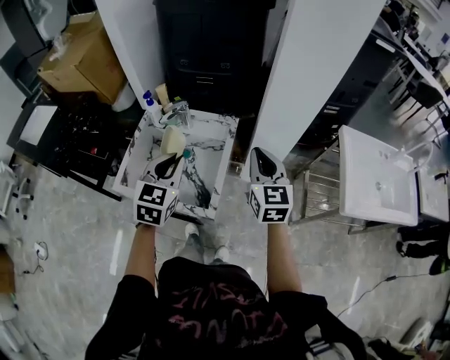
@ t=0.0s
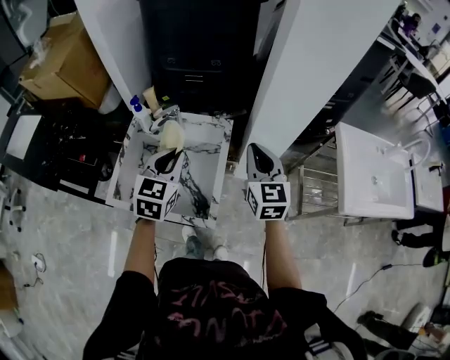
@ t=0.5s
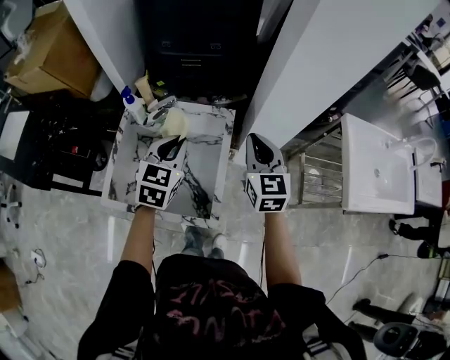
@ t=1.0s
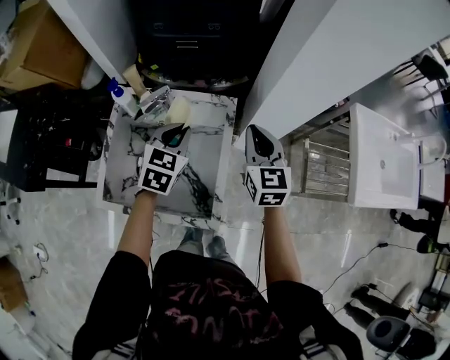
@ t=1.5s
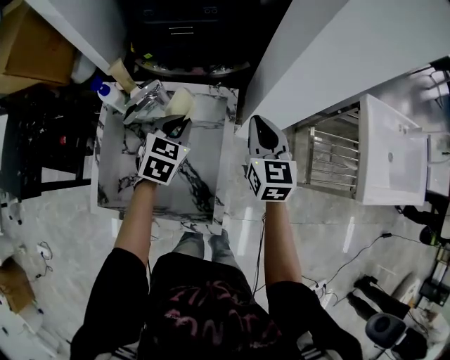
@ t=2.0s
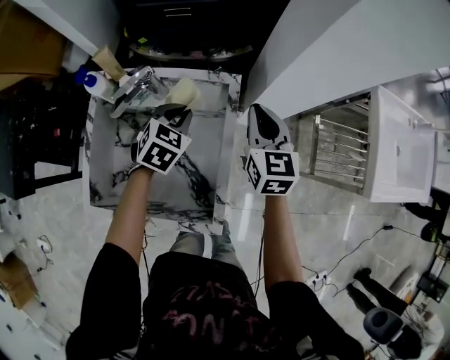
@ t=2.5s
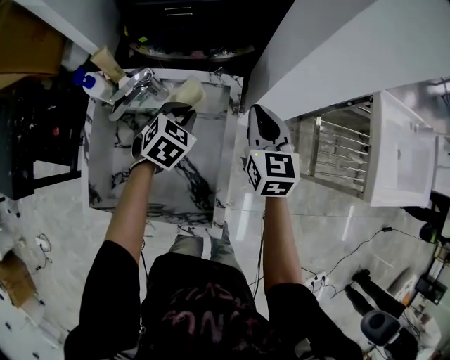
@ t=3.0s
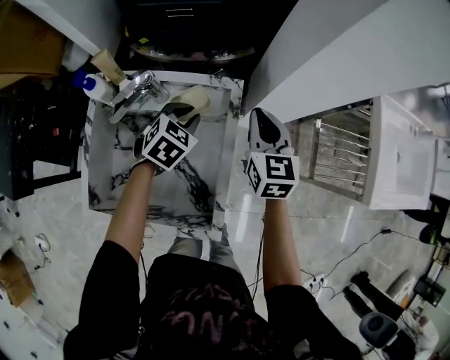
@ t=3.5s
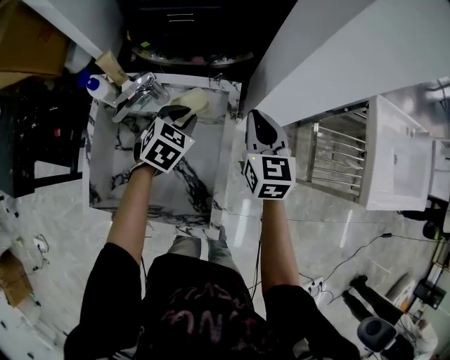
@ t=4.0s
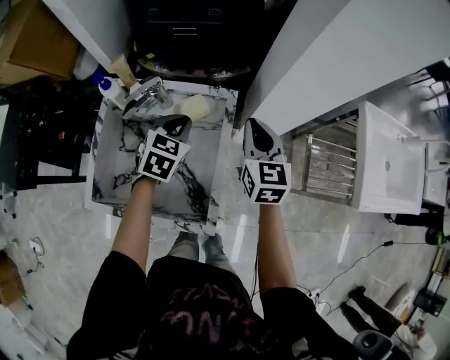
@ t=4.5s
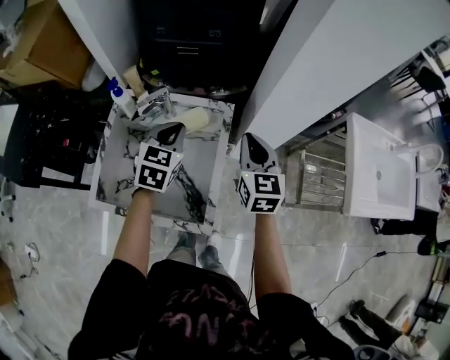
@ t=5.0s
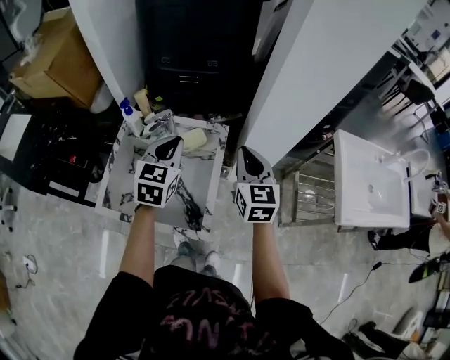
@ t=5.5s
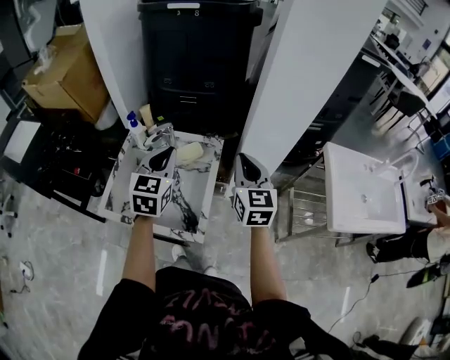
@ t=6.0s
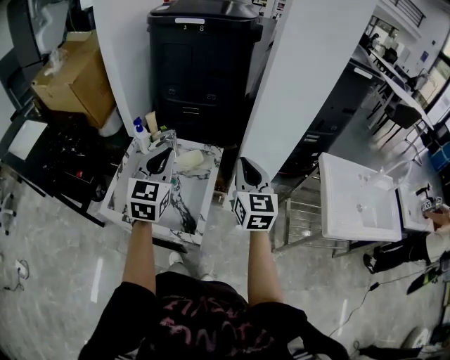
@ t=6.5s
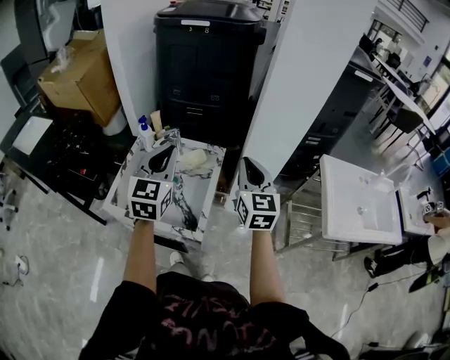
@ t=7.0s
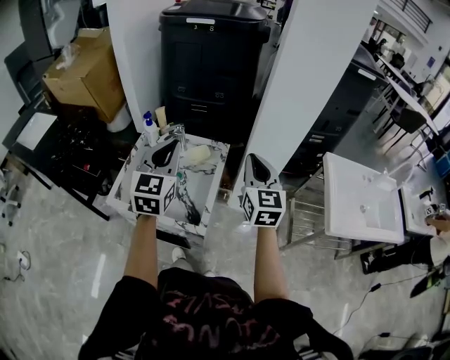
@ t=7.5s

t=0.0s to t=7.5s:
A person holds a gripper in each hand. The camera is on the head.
t=0.0s to t=2.0s: The grippers both shift forward and downward by approximately 25 cm. The left gripper swivels approximately 20 degrees.
t=2.0s to t=4.0s: The left gripper is displaced downward by some 5 cm.
t=4.0s to t=5.5s: Both grippers travel together upward and backward, roughly 20 cm. The left gripper changes its angle by roughly 30 degrees.
t=5.5s to t=7.5s: Both grippers move upward and backward, about 15 cm.

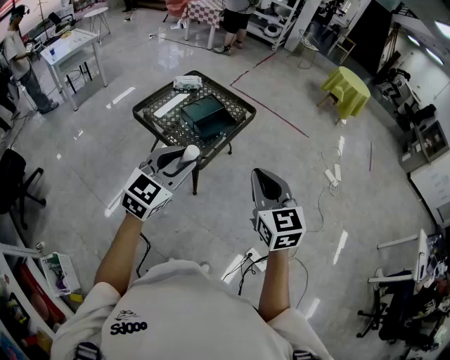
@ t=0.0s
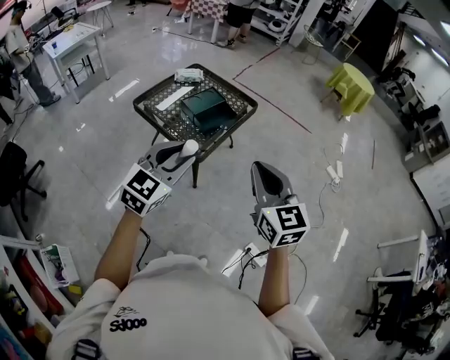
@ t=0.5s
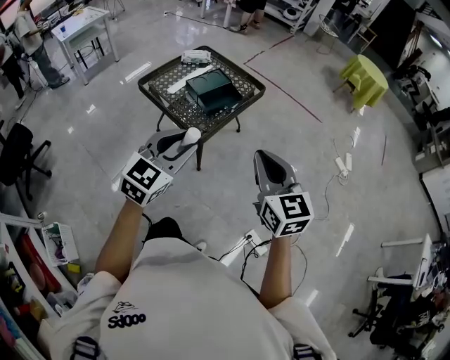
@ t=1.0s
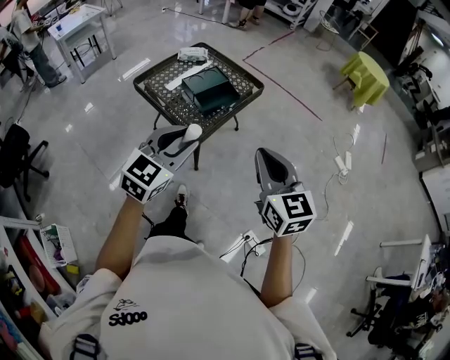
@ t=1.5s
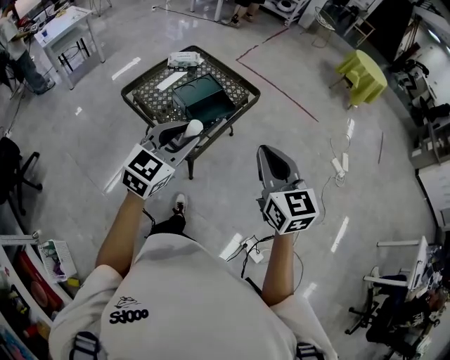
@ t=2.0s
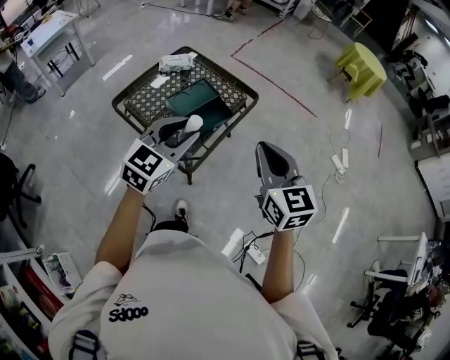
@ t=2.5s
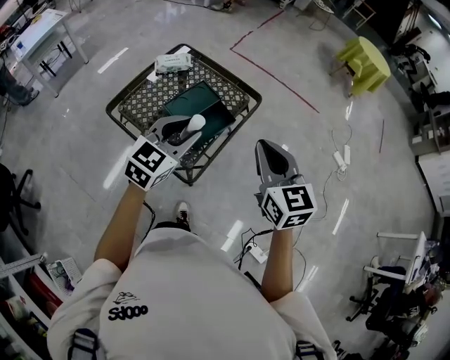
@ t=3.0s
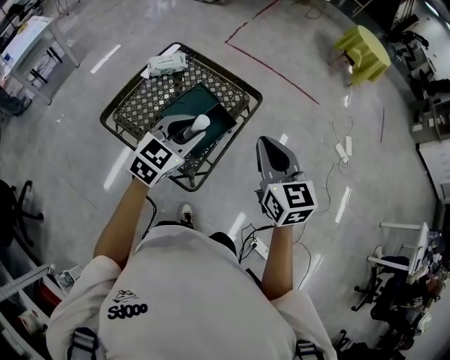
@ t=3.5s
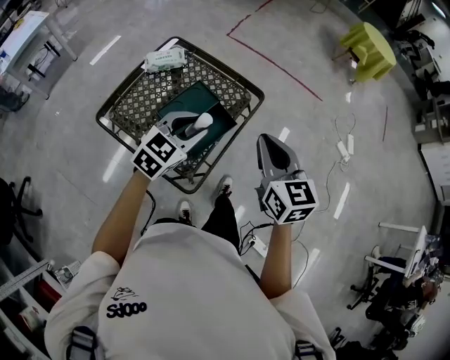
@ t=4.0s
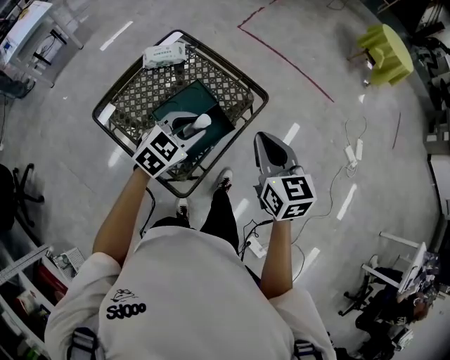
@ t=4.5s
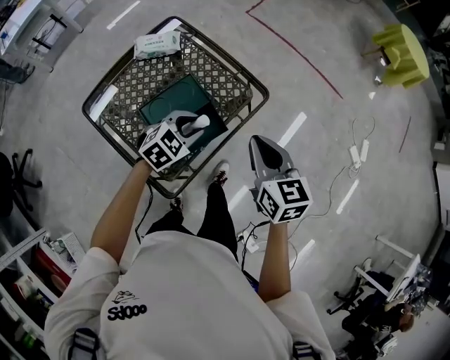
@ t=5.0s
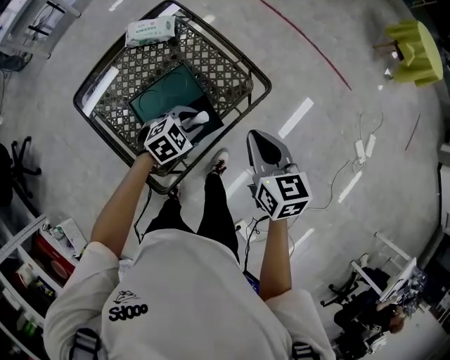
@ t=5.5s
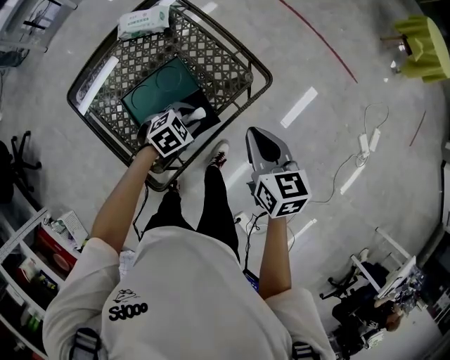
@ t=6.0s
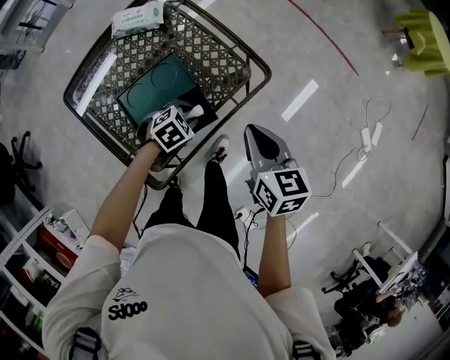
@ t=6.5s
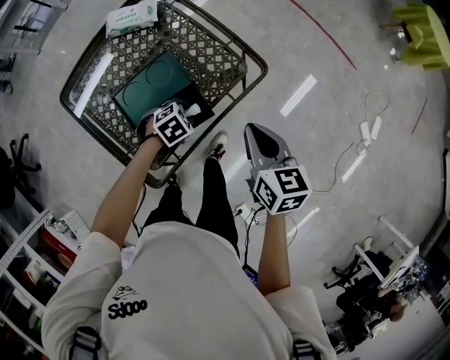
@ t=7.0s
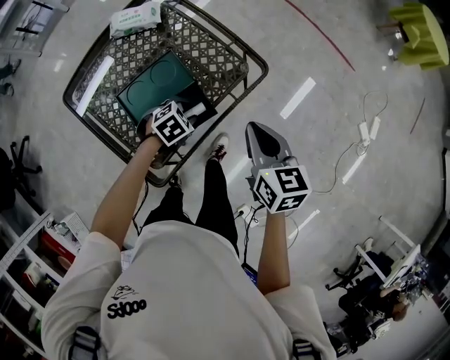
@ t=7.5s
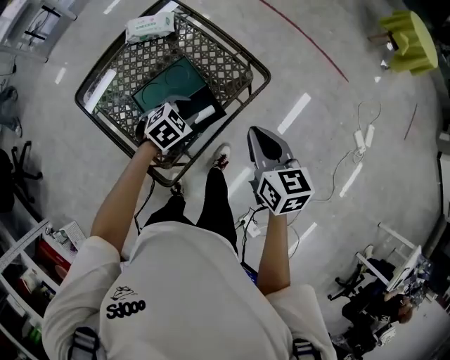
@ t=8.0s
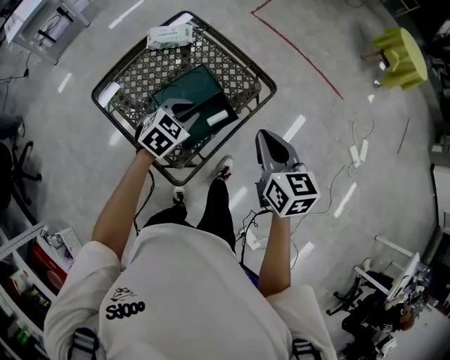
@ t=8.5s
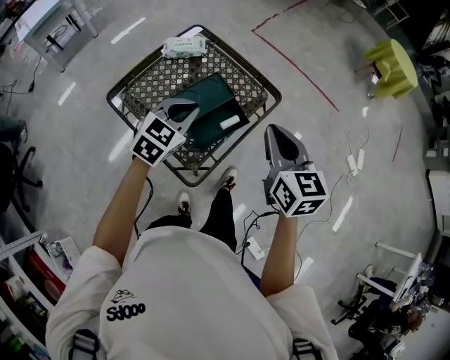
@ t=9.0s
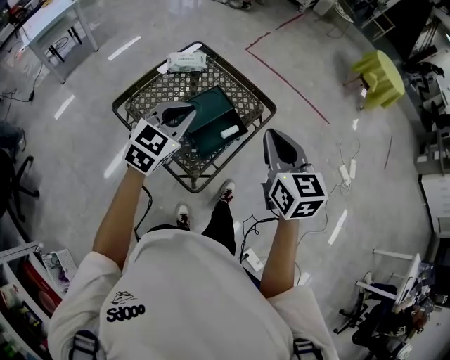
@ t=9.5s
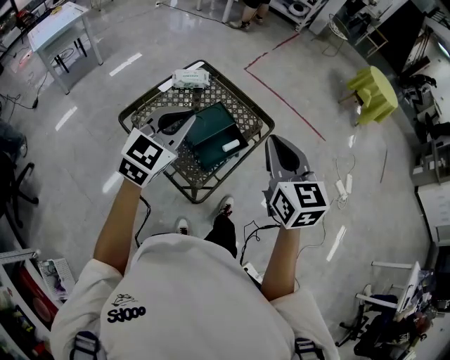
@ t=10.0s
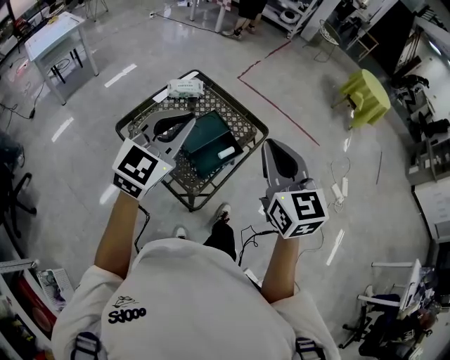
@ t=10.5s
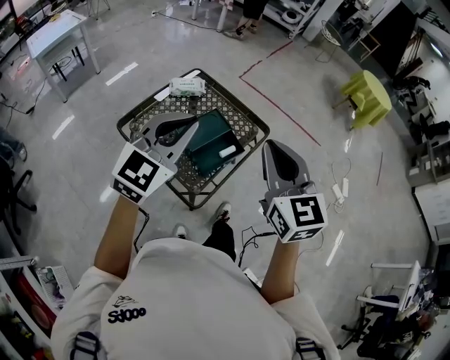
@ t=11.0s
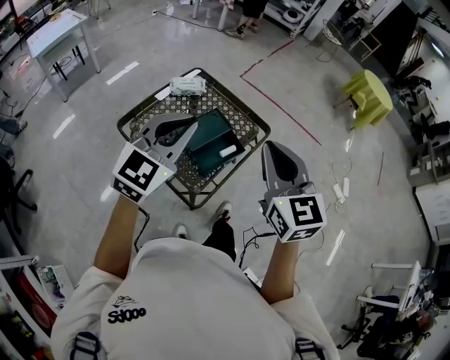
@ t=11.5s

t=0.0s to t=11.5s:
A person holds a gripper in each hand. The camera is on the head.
t=0.0s to t=2.0s: The two grippers go roughly 15 cm forward.
t=2.0s to t=4.0s: Both grippers move forward, some 25 cm.
t=4.0s to t=6.0s: The two grippers go about 25 cm downward and forward. The left gripper tips its fingers downward by roughly 30 degrees, while the right gripper changes its angle by roughly 20 degrees.
t=6.0s to t=7.5s: There are only small adjustments of the grippers.
t=7.5s to t=9.5s: The left gripper goes about 40 cm upward and to the left, points its fingers roughly 50 degrees further upward, and closes up. Meanwhile the right gripper goes roughly 30 cm upward, backward and to the left, and swivels about 20 degrees.
t=9.5s to t=11.5s: The left gripper moves upward and backward, about 15 cm. Meanwhile the right gripper shifts about 10 cm upward.

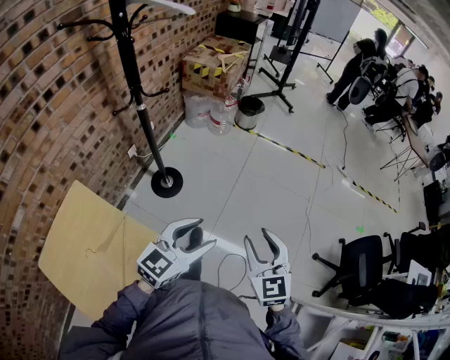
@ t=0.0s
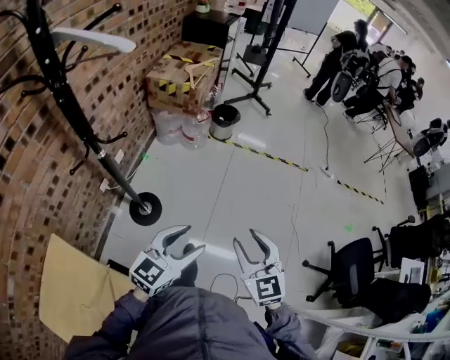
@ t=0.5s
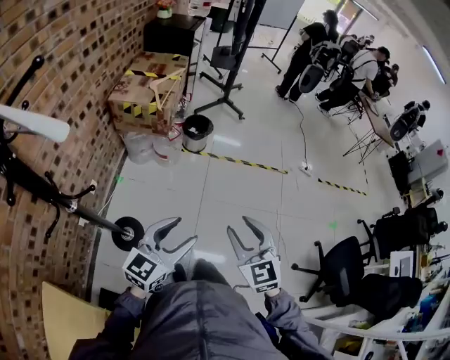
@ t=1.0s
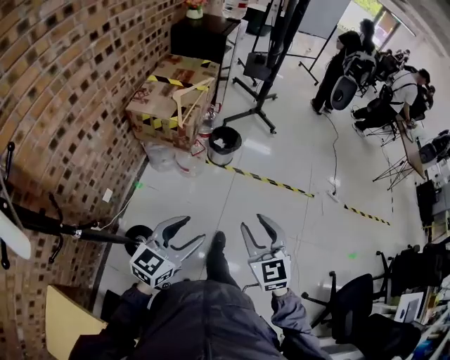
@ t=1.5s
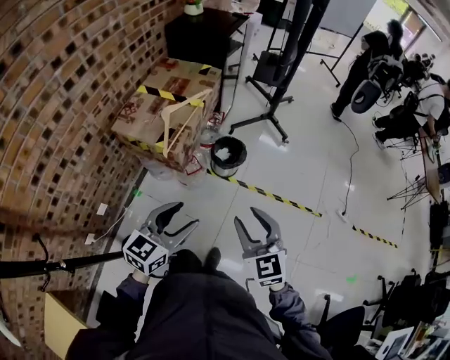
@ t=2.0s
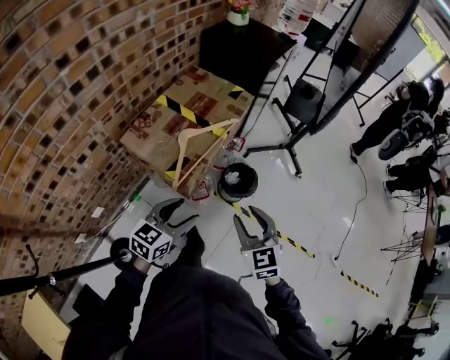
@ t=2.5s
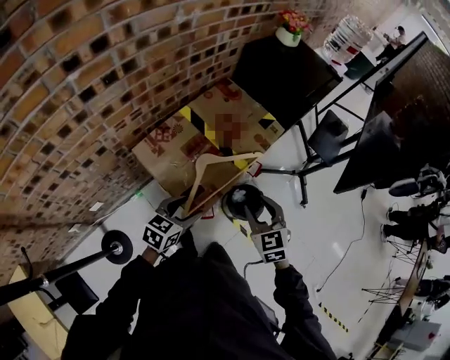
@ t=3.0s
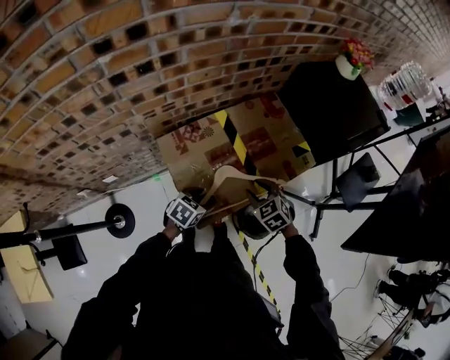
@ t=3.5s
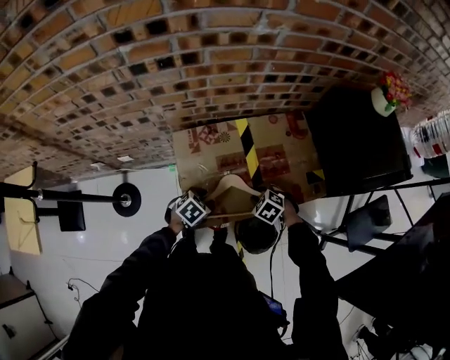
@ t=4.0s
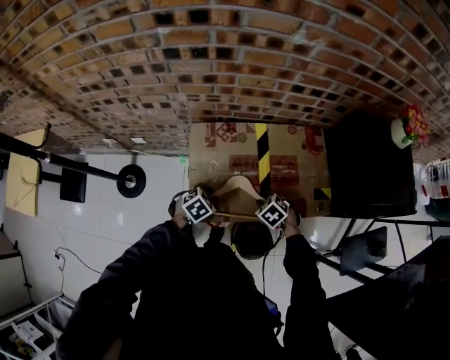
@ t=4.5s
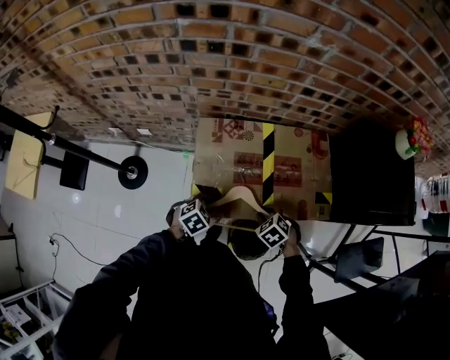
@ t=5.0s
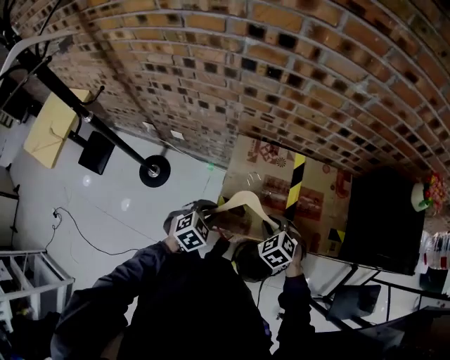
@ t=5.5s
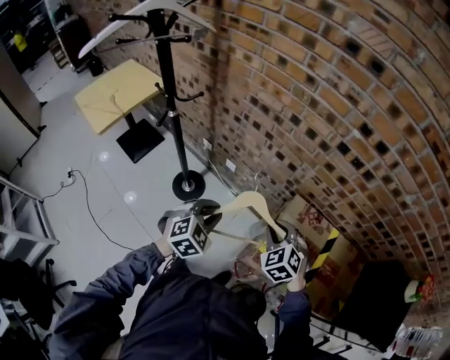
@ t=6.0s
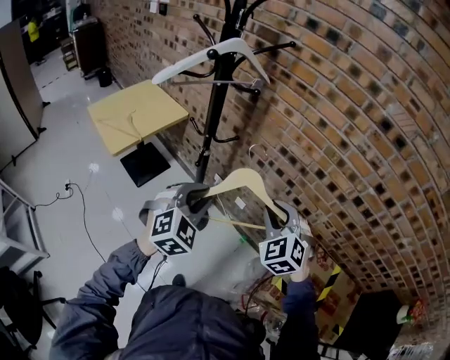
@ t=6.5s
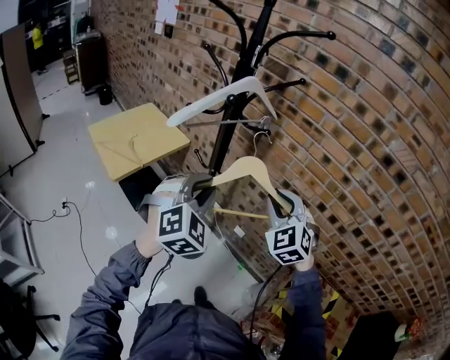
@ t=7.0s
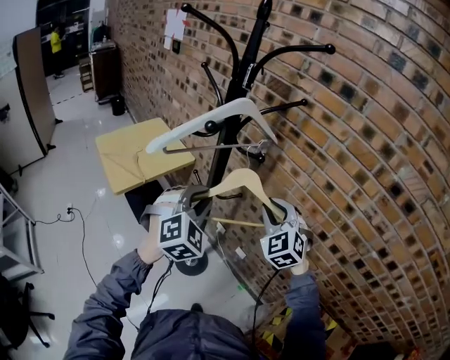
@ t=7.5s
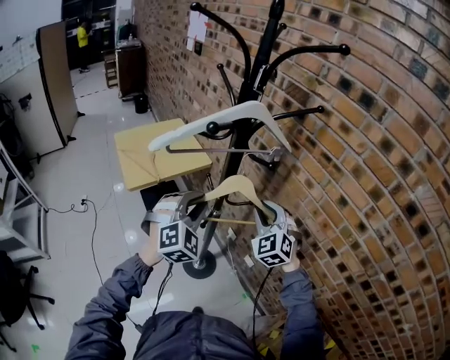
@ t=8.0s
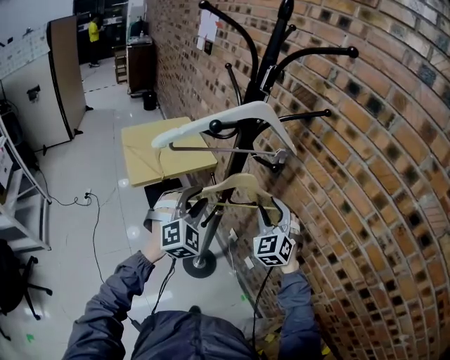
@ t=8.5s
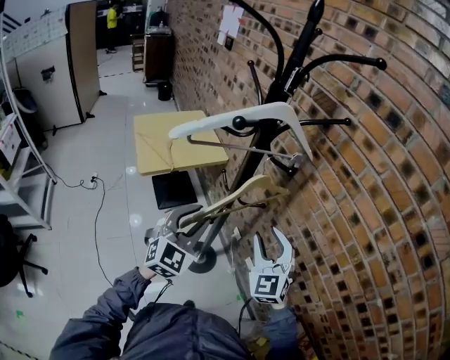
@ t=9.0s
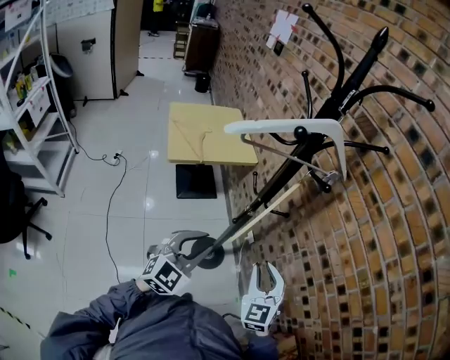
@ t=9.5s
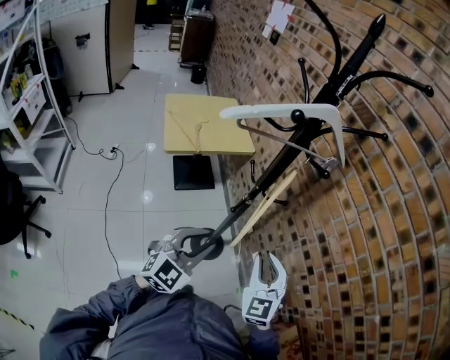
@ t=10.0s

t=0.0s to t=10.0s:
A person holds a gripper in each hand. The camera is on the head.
t=0.0s to t=2.0s: The pair of grippers is taken forward, roughly 80 cm.
t=2.0s to t=4.0s: Both grippers are carried approximately 50 cm. The left gripper tips its fingers downward by approximately 50 degrees, while the right gripper tilts its fingers roughly 50 degrees downward.
t=4.0s to t=6.0s: The right gripper changes place by roughly 40 cm, and swivels roughly 40 degrees. The left gripper shifts by approximately 35 cm, and changes its angle by some 50 degrees.
t=6.0s to t=8.0s: The left gripper ends up approximately 40 cm from where it was, and swivels approximately 40 degrees. The right gripper changes place by roughly 50 cm, and changes its angle by some 40 degrees.
t=8.0s to t=10.0s: The left gripper shifts about 20 cm backward and downward, and changes its angle by some 30 degrees; the right gripper goes some 15 cm backward, and opens, then closes again.
